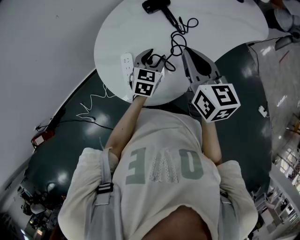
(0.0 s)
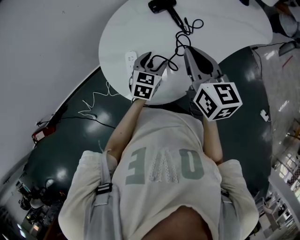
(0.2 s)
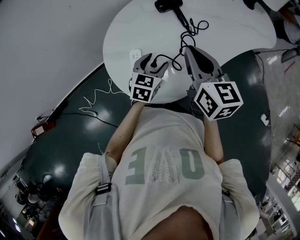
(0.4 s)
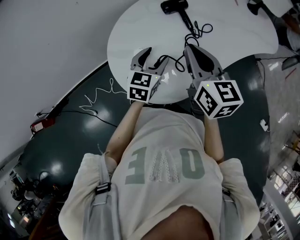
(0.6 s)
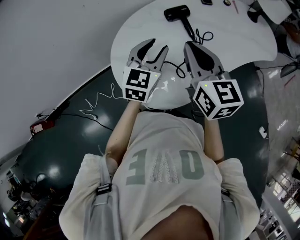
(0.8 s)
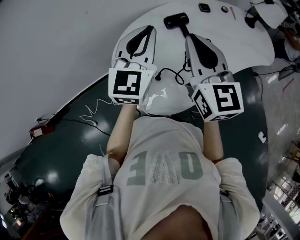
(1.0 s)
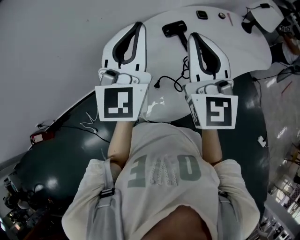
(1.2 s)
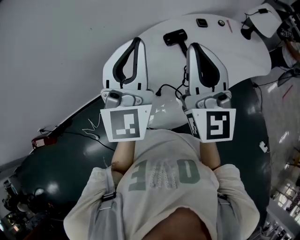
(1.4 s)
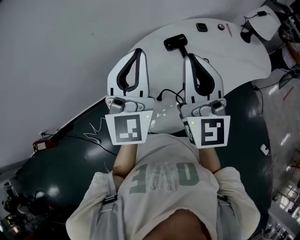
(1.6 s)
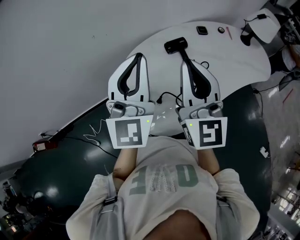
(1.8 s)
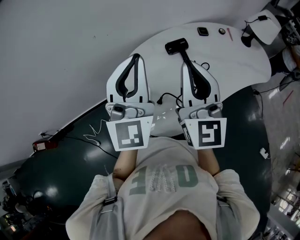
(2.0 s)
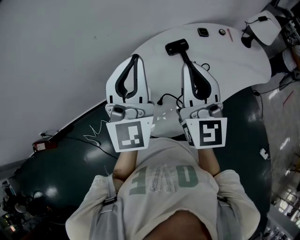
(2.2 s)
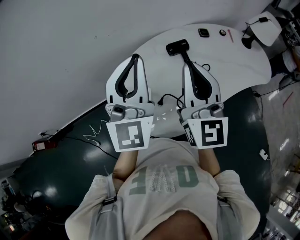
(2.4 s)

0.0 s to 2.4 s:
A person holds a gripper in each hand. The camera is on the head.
0.0 to 1.2 s: The right gripper travels upward by about 15 cm, and turns by roughly 40 degrees. Meanwhile the left gripper shifts approximately 35 cm upward, tips its fingers upward by about 50 degrees, and closes its fingers.
1.2 to 2.4 s: The grippers make only small movements.

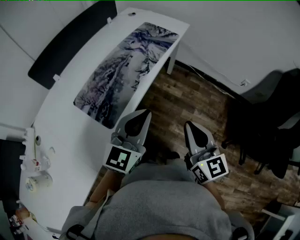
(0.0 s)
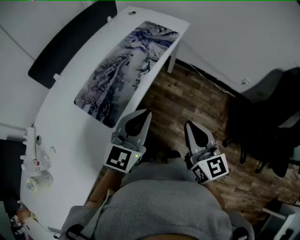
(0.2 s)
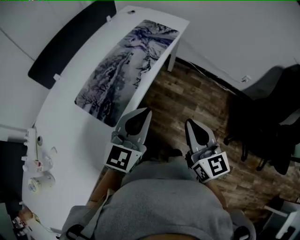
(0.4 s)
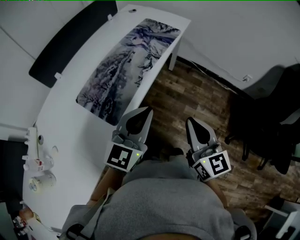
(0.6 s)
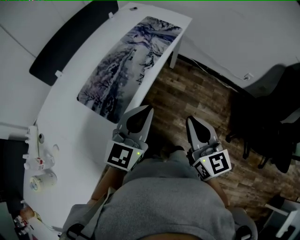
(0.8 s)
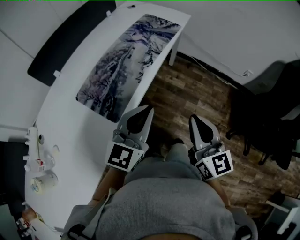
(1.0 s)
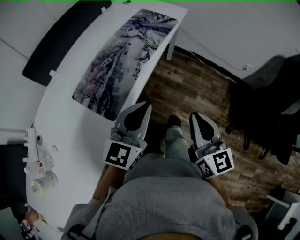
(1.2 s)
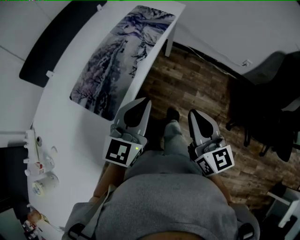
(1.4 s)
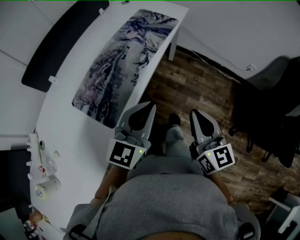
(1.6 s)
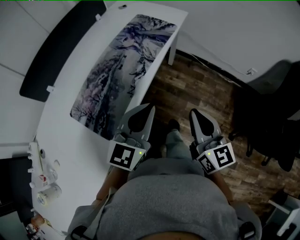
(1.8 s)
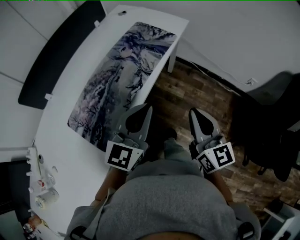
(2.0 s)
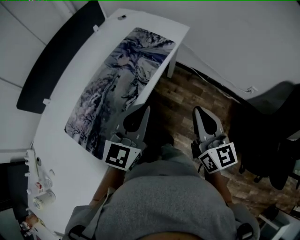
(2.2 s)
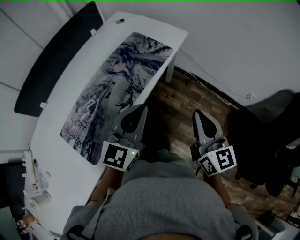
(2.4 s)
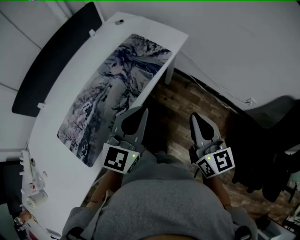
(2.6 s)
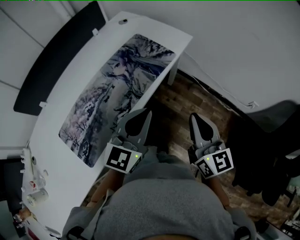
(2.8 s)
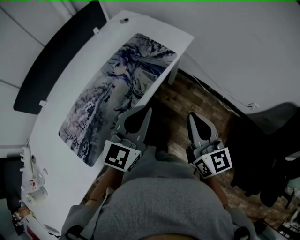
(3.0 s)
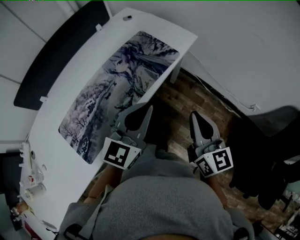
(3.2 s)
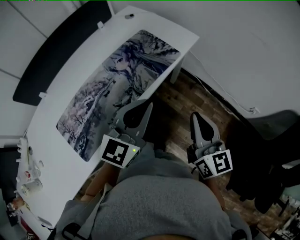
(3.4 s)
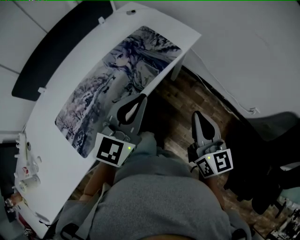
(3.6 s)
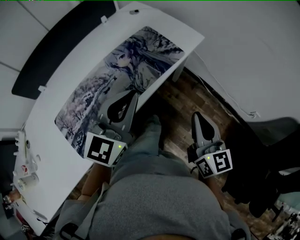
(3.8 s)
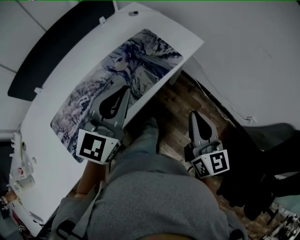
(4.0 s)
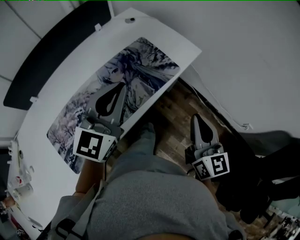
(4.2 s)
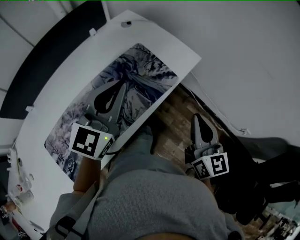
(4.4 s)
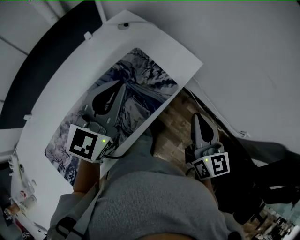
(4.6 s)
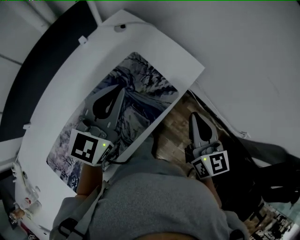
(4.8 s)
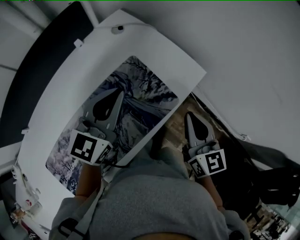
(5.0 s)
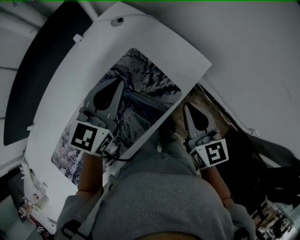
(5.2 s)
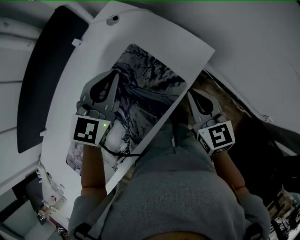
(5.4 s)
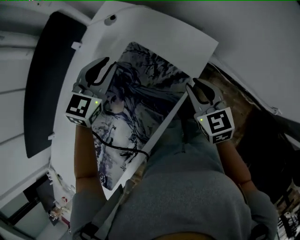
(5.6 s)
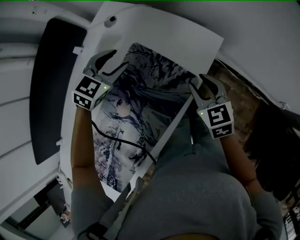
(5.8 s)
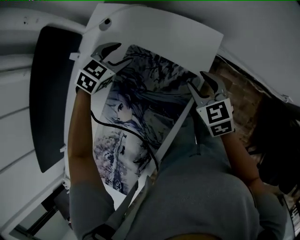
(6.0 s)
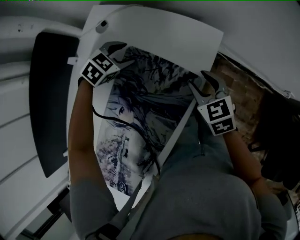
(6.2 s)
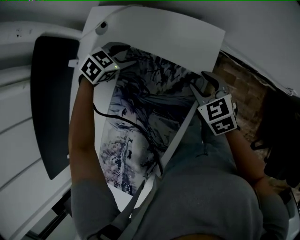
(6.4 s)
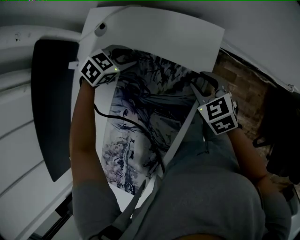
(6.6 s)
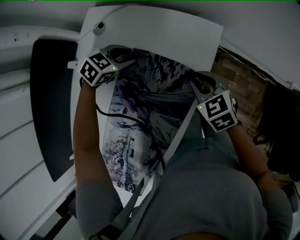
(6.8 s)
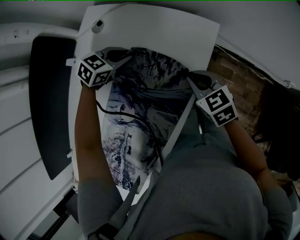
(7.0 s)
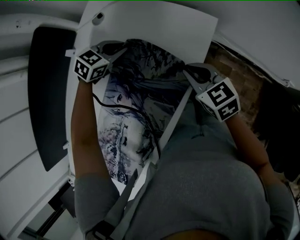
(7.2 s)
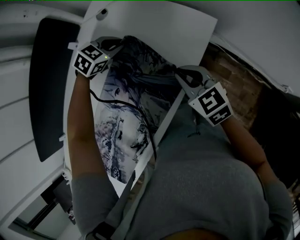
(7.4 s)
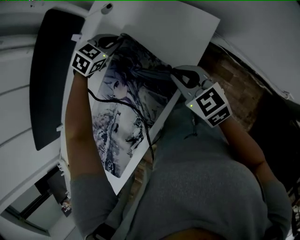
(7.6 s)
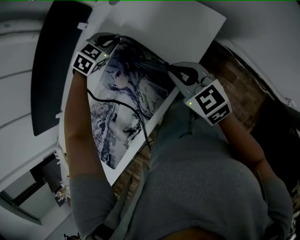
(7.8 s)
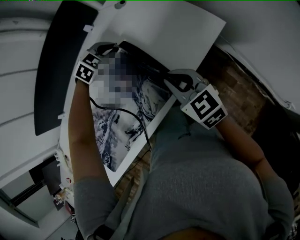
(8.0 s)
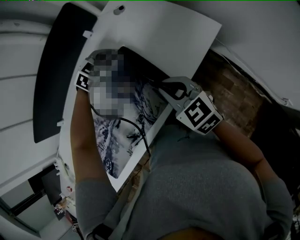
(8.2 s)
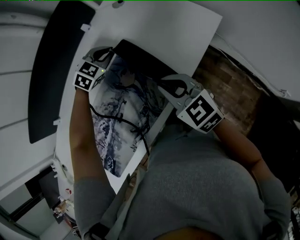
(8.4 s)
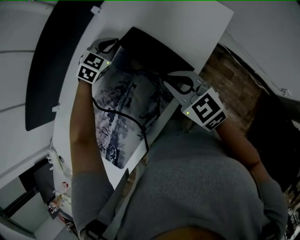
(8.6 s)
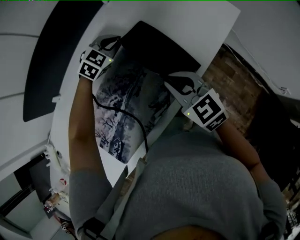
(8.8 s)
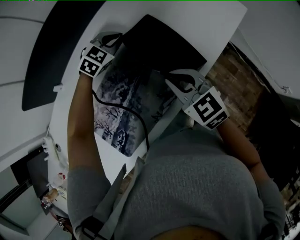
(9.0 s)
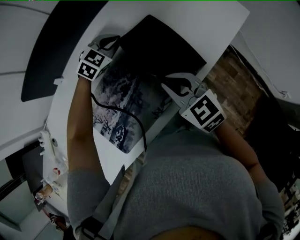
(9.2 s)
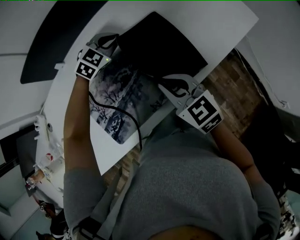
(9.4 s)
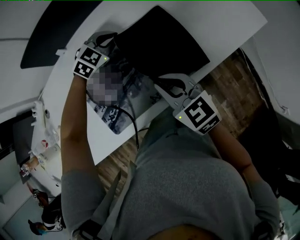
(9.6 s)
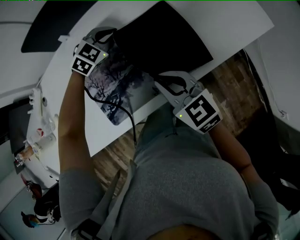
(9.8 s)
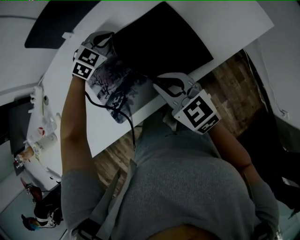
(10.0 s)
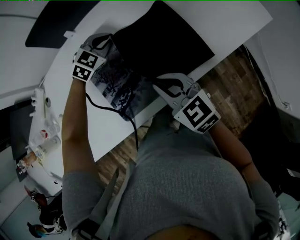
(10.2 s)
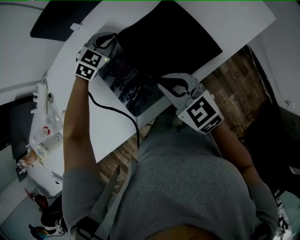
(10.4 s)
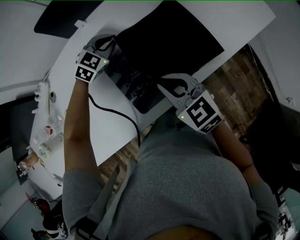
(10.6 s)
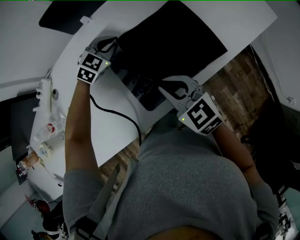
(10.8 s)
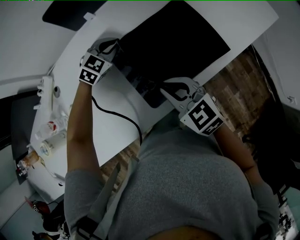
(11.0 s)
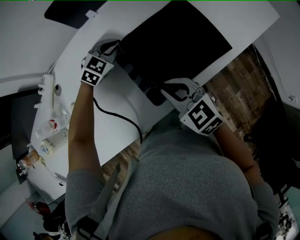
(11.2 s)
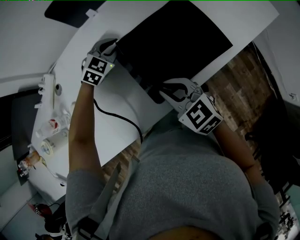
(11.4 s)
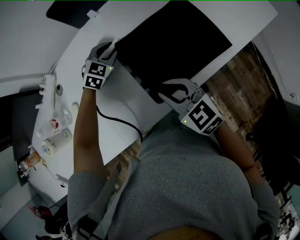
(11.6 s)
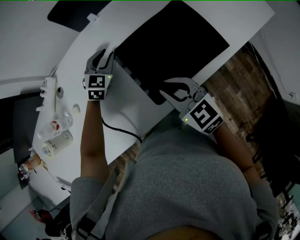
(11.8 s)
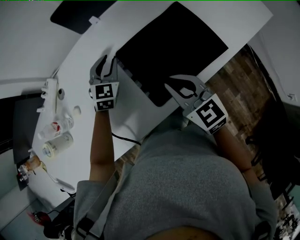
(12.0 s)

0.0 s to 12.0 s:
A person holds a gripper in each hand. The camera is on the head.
0.0 to 1.6 s: The grippers make only small movements.
1.6 to 3.0 s: Both grippers travel together forward, some 25 cm.
3.0 to 4.4 s: The grippers both shift forward by some 15 cm.
4.4 to 6.0 s: The two grippers go approximately 35 cm forward and downward. The right gripper angles its fingers downward, by approximately 30 degrees, and opens up; the left gripper tilts its fingers about 50 degrees downward, and opens its fingers.
6.0 to 7.6 s: The right gripper shifts by about 10 cm, rotates roughly 20 degrees, and closes up, while the left gripper closes up.
7.6 to 9.0 s: The two grippers go some 25 cm to the left and backward.
9.0 to 10.4 s: Both grippers move to the left and backward, some 25 cm.
10.4 to 12.0 s: The left gripper moves to the left and backward, roughly 15 cm, and turns by approximately 30 degrees. Meanwhile the right gripper goes roughly 10 cm to the left.

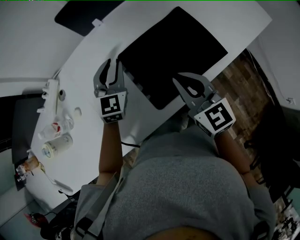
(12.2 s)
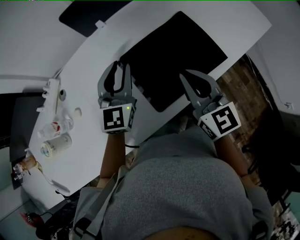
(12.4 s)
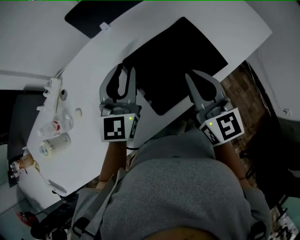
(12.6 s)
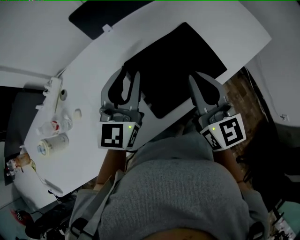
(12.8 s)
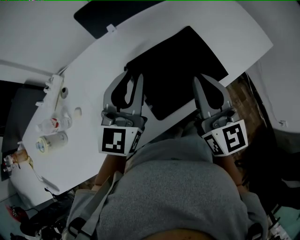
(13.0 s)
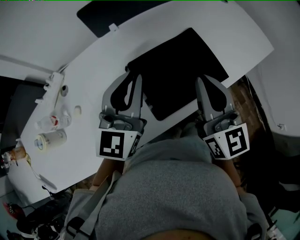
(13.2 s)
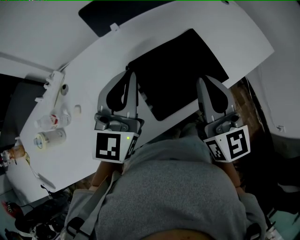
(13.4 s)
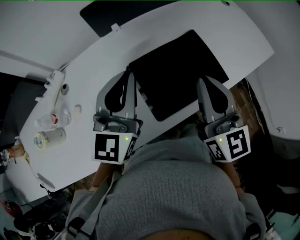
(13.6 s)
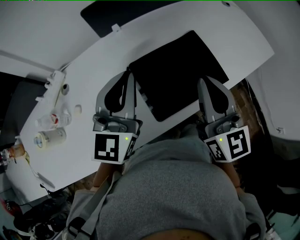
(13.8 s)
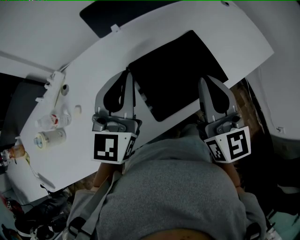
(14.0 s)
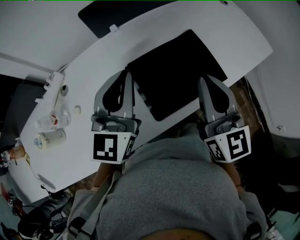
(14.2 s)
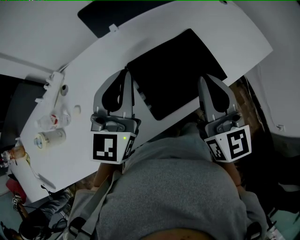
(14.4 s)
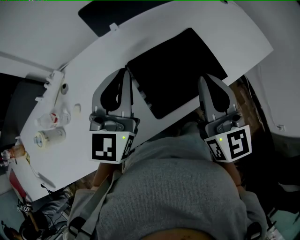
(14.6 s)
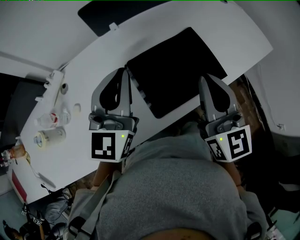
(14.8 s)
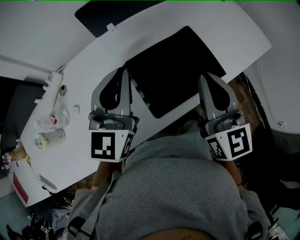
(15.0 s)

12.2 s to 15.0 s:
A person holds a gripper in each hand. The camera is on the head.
12.2 to 13.6 s: The right gripper moves upward, some 15 cm; the left gripper moves upward and backward, about 20 cm, swivels roughly 20 degrees, and closes its fingers.
13.6 to 15.0 s: The grippers stay close to where they were, moving slightly.

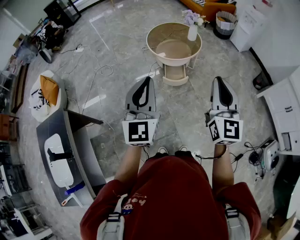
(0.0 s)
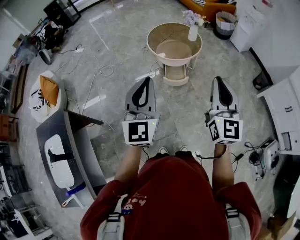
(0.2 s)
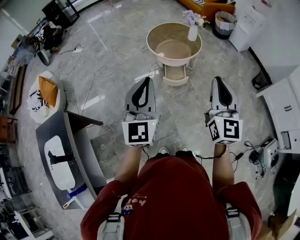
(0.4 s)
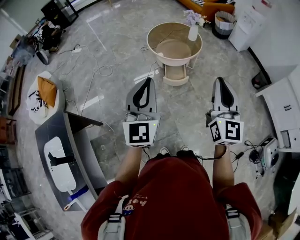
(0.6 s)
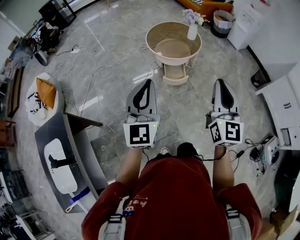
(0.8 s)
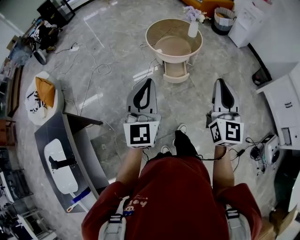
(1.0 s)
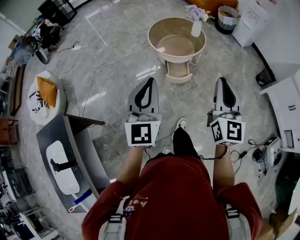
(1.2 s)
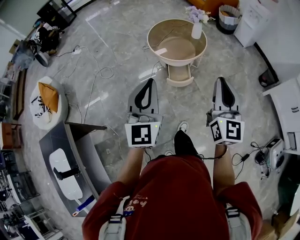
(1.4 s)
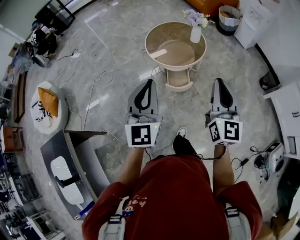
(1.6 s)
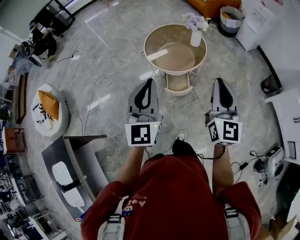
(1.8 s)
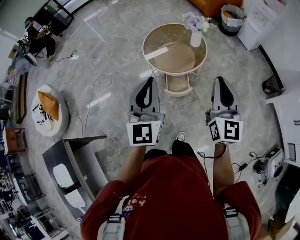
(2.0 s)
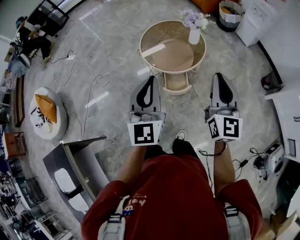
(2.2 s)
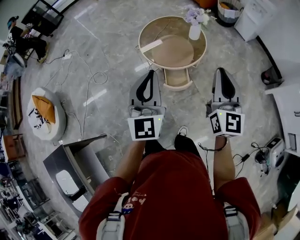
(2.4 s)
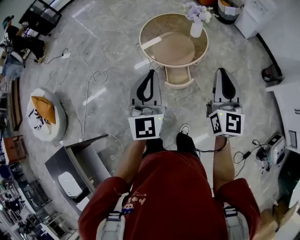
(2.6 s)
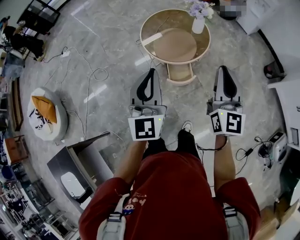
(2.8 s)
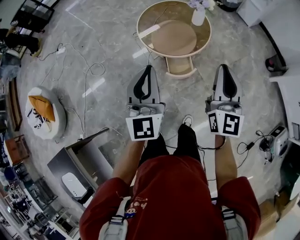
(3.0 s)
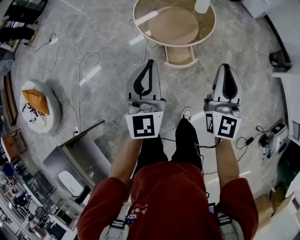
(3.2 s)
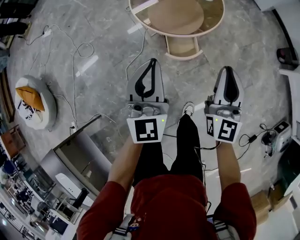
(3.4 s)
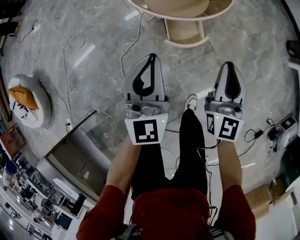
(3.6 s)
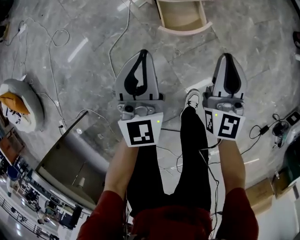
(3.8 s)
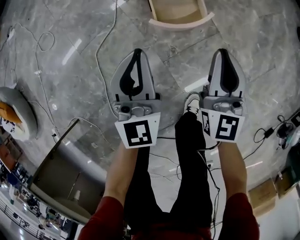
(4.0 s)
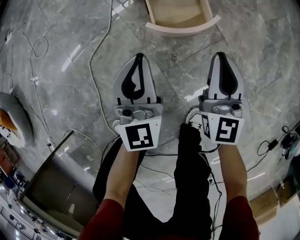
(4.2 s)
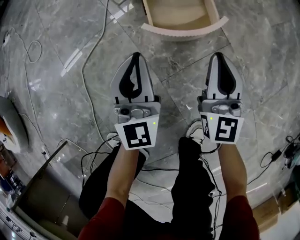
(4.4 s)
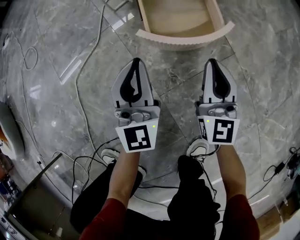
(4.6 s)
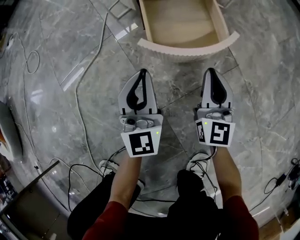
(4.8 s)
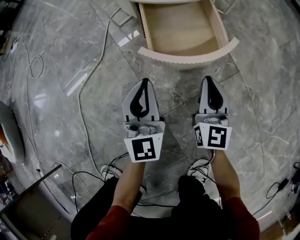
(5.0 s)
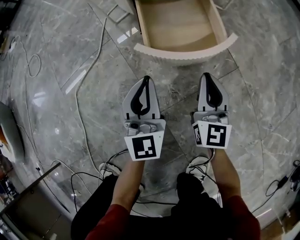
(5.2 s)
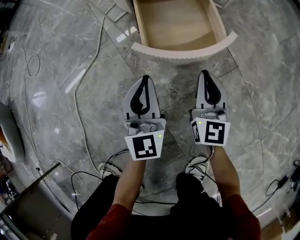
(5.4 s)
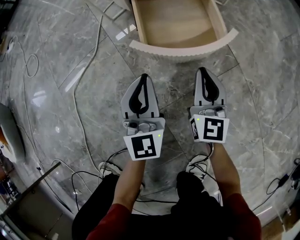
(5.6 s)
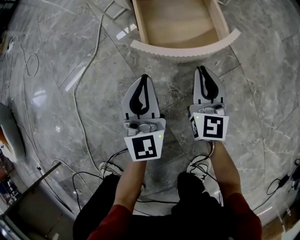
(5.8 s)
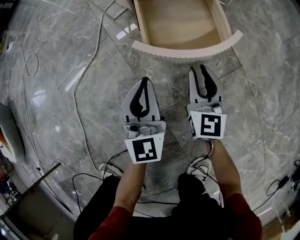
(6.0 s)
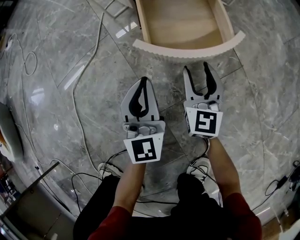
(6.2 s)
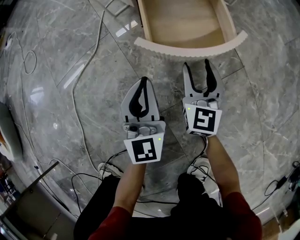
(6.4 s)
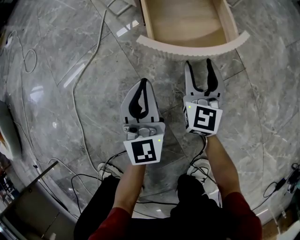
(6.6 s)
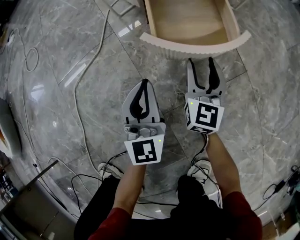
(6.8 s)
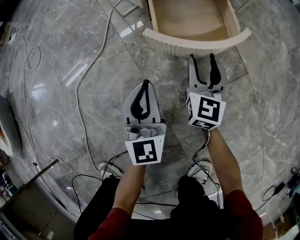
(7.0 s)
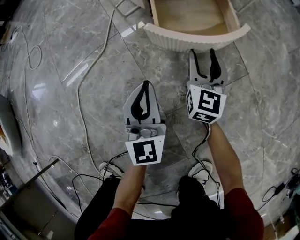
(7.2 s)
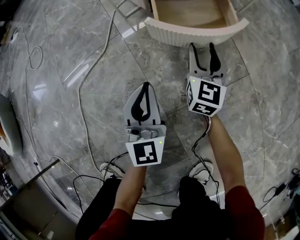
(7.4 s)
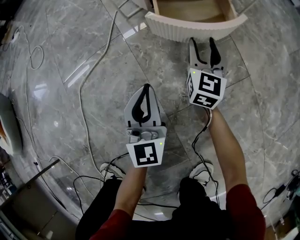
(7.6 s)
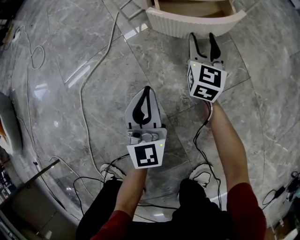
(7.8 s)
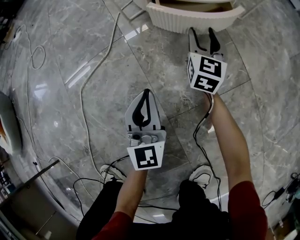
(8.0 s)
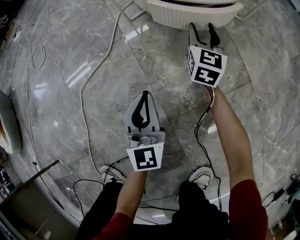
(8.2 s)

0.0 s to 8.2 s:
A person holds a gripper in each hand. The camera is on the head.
0.0 to 1.6 s: The two grippers go about 15 cm forward.
1.6 to 3.2 s: Both grippers move forward and downward, some 25 cm.
3.2 to 5.0 s: Both grippers travel together downward, approximately 80 cm.
5.0 to 6.6 s: The right gripper changes place by about 5 cm, and opens.
6.6 to 8.2 s: The right gripper shifts some 15 cm forward.
